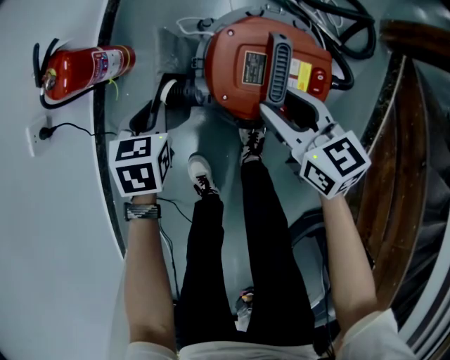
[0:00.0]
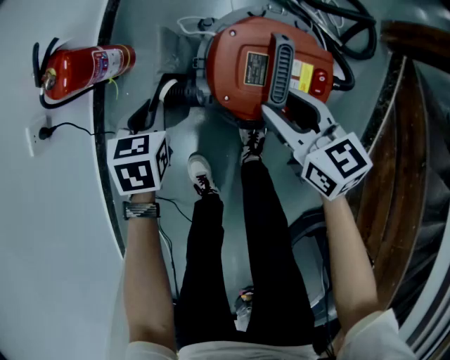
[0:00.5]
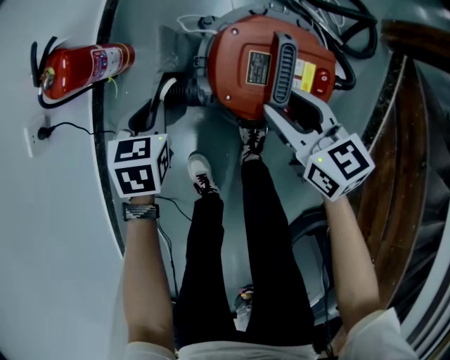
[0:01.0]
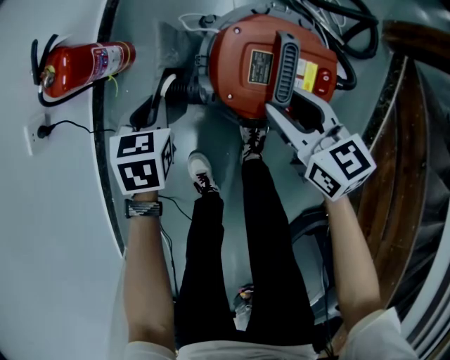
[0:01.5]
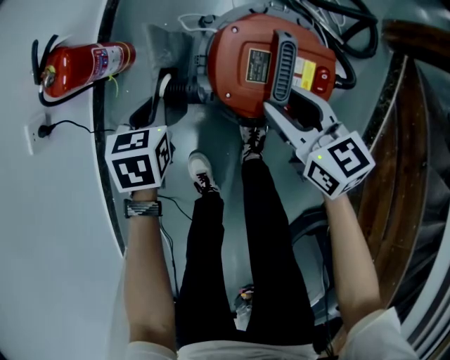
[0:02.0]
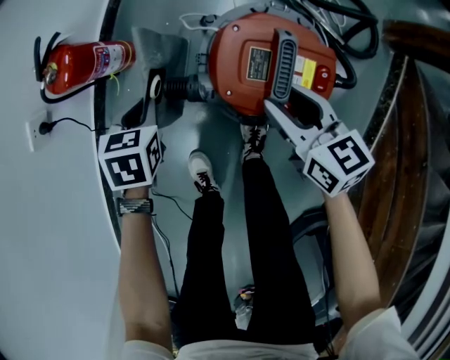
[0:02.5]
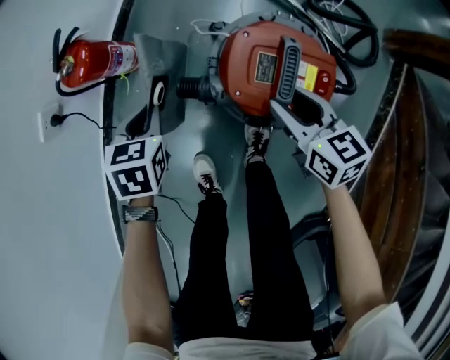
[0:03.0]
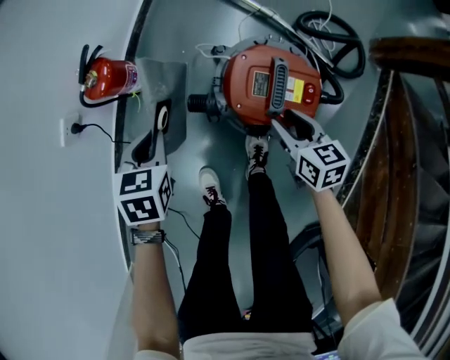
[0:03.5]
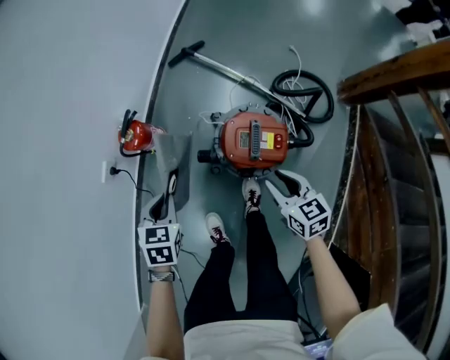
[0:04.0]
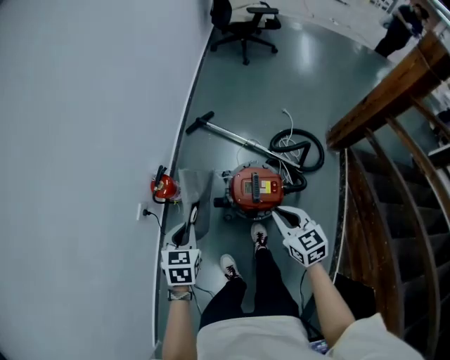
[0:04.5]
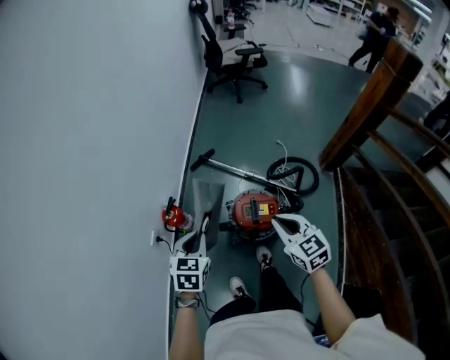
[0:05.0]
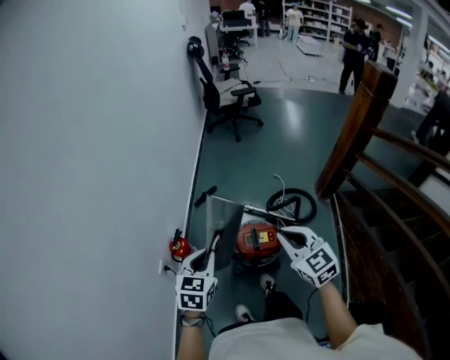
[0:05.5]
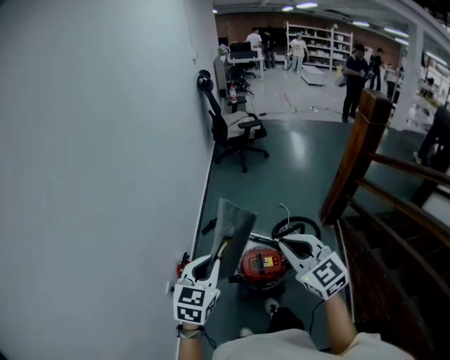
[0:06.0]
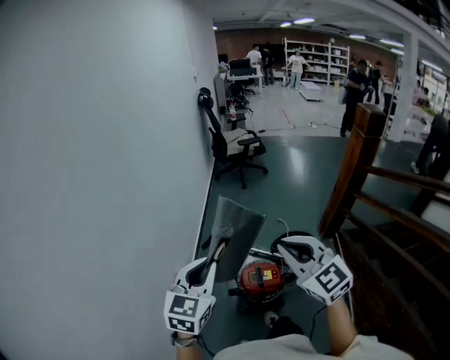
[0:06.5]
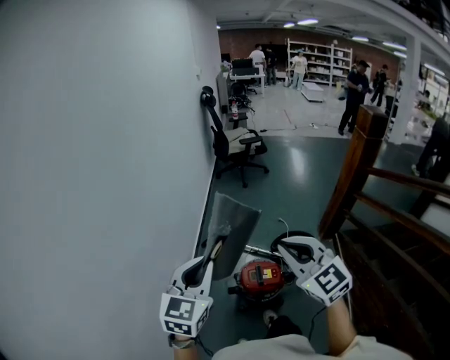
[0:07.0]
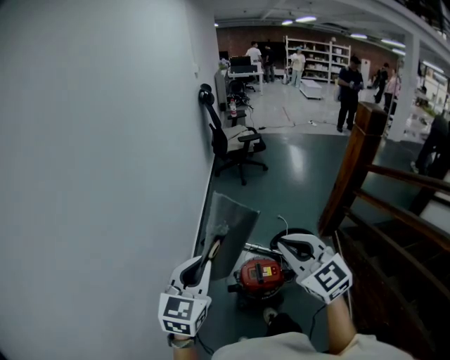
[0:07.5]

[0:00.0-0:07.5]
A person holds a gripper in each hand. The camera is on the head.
0:00.0 to 0:02.0: The two grippers keep their place.
0:02.0 to 0:04.0: The left gripper heads upward, covering approximately 20 cm. Meanwhile the right gripper travels upward and backward by approximately 15 cm.
0:04.0 to 0:05.5: The two grippers go roughly 40 cm upward. The left gripper rotates about 30 degrees, while the right gripper rotates some 30 degrees, and closes up.
0:05.5 to 0:07.5: The two grippers go about 20 cm upward. The left gripper rotates approximately 20 degrees.

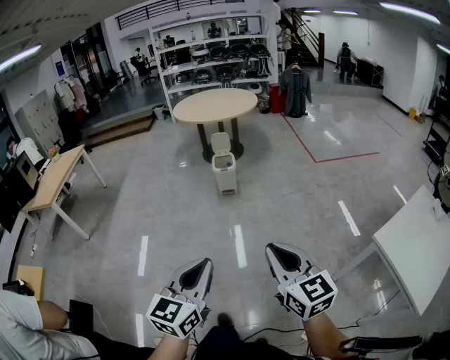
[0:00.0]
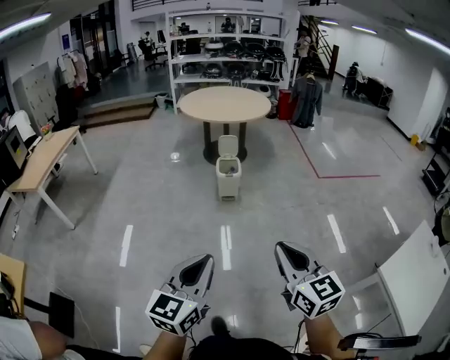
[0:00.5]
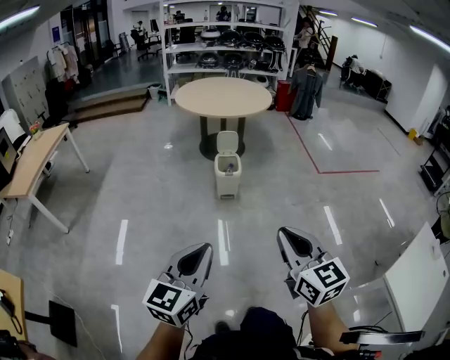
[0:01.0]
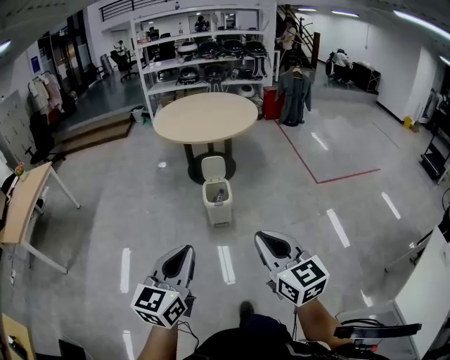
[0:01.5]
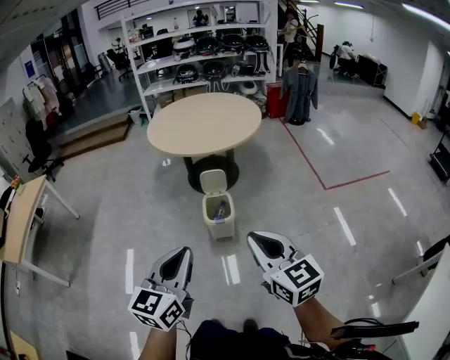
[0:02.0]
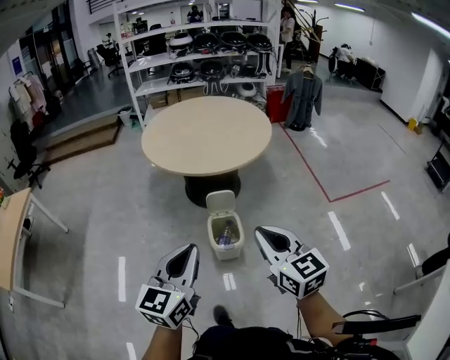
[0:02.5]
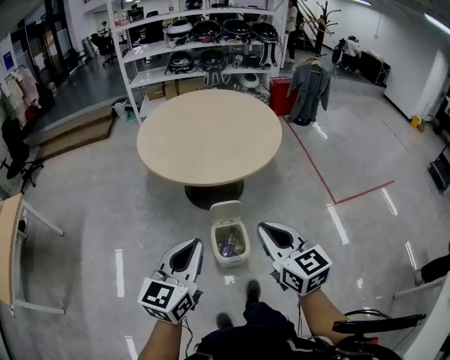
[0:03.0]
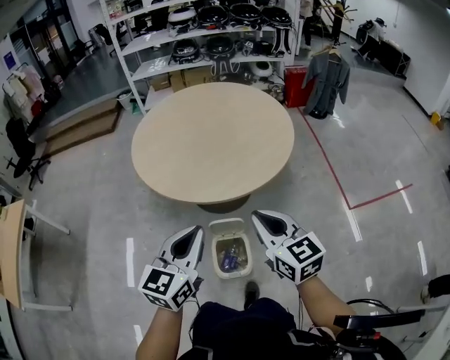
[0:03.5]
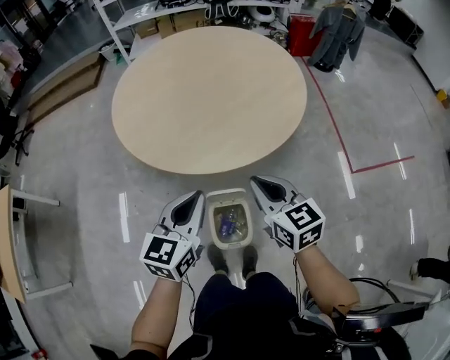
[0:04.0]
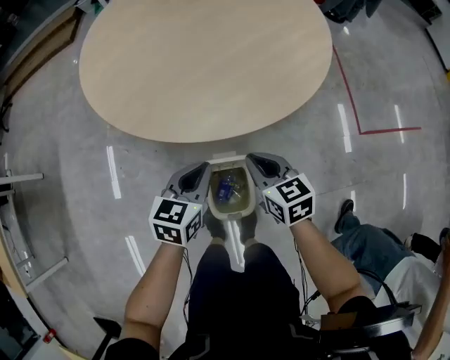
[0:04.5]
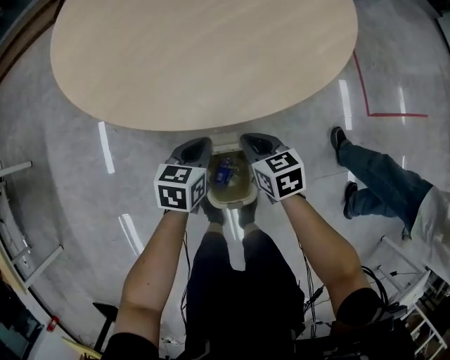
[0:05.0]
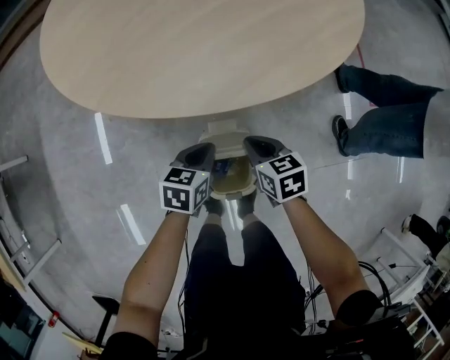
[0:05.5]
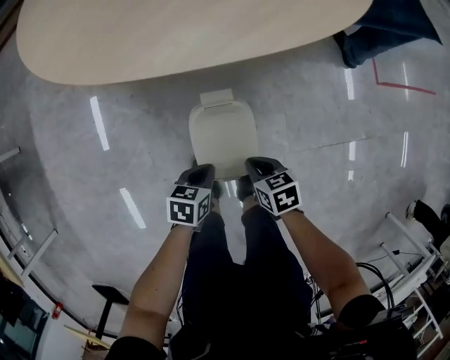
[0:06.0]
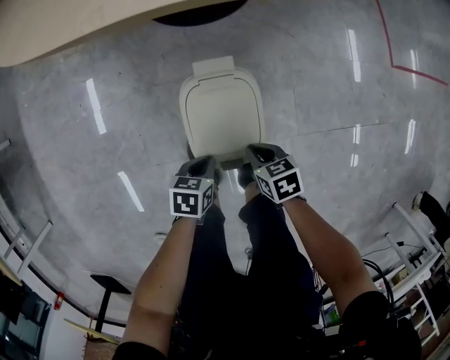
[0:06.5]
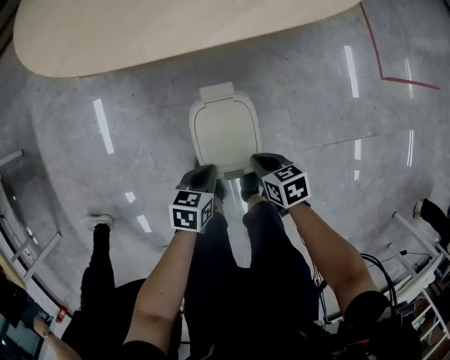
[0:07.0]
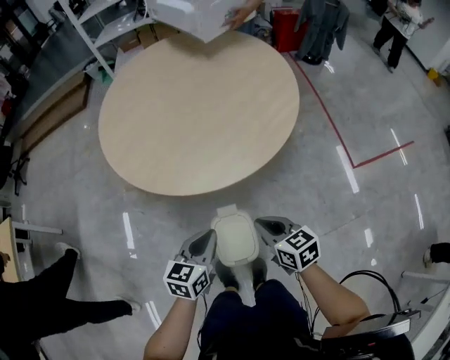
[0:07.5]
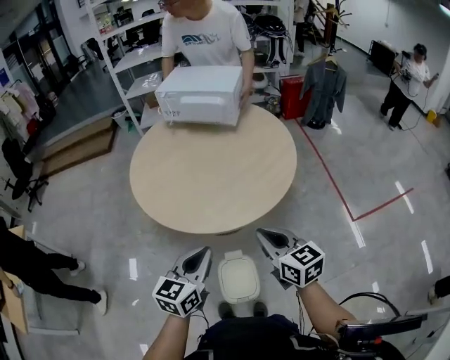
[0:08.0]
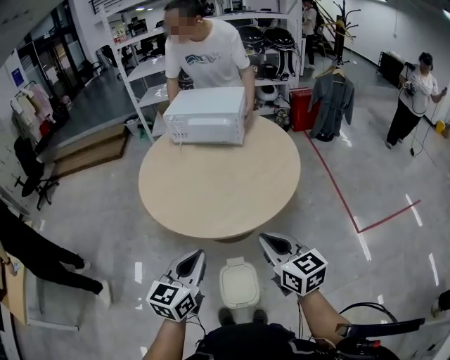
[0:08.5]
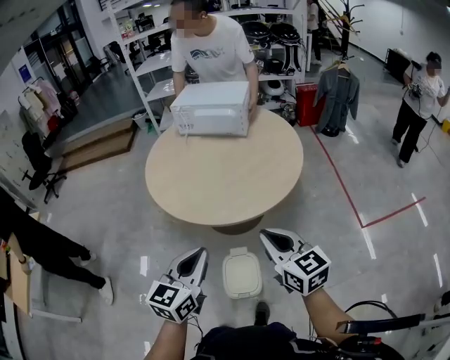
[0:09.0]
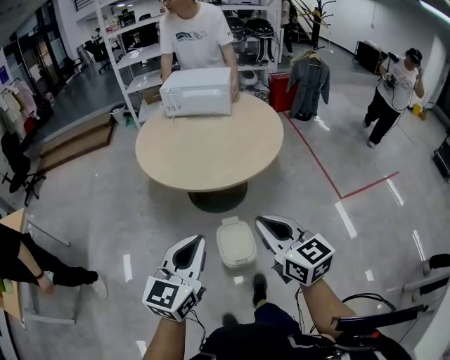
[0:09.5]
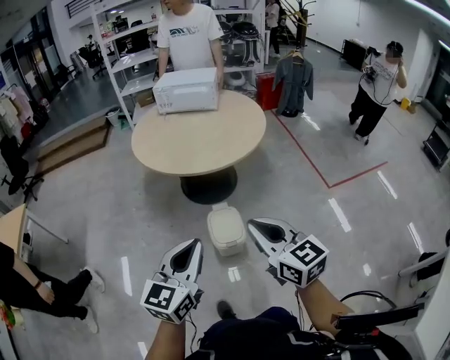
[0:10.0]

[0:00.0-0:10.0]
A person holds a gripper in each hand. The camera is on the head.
0:00.0 to 0:02.0: The pair of grippers is taken forward, some 60 cm.
0:02.0 to 0:04.0: The two grippers travel together, forward, about 60 cm.
0:04.0 to 0:06.0: The two grippers go some 50 cm downward. The left gripper tilts its fingers roughly 40 degrees downward. The right gripper angles its fingers downward, by approximately 40 degrees.
0:06.0 to 0:08.0: Both grippers move upward, about 50 cm. The right gripper points its fingers some 40 degrees further upward. The left gripper angles its fingers upward, by some 40 degrees.
0:08.0 to 0:10.0: Both grippers move backward, some 35 cm.

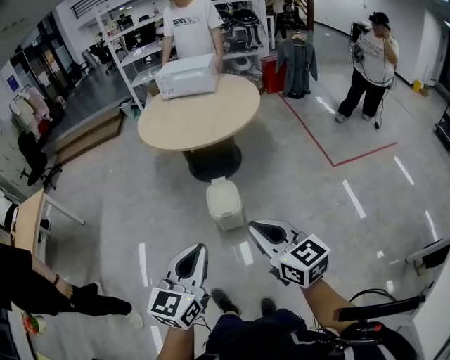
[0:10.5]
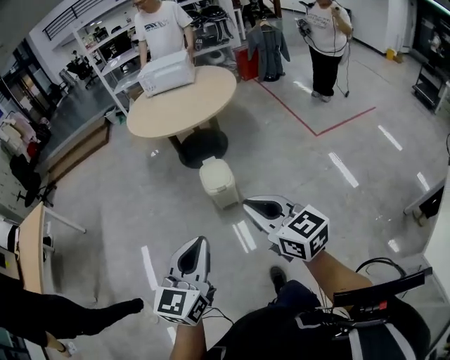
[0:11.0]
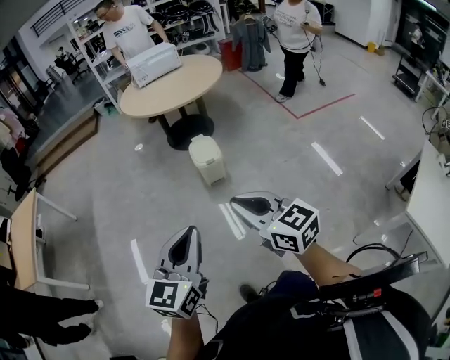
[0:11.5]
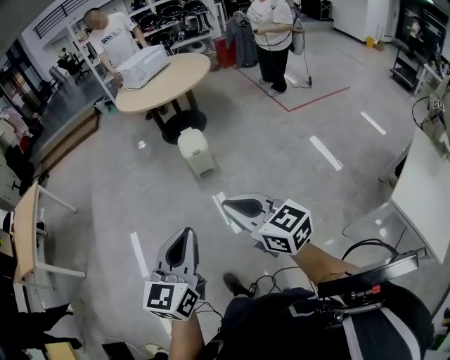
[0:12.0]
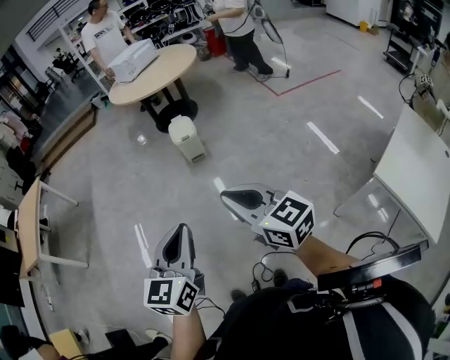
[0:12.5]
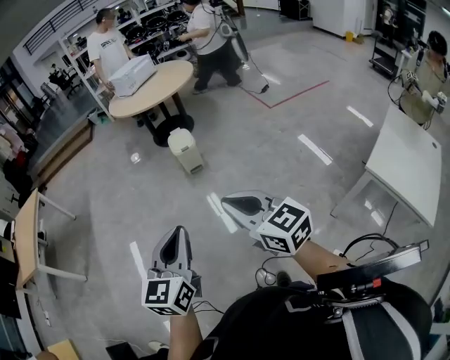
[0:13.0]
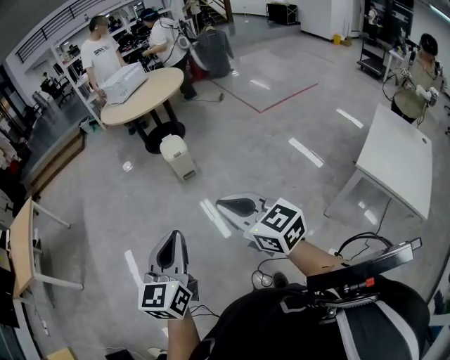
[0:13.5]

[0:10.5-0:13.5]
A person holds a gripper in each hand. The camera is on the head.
0:10.5 to 0:12.0: Both grippers move backward, roughly 40 cm.
0:12.0 to 0:13.5: Both grippers move backward, approximately 15 cm.

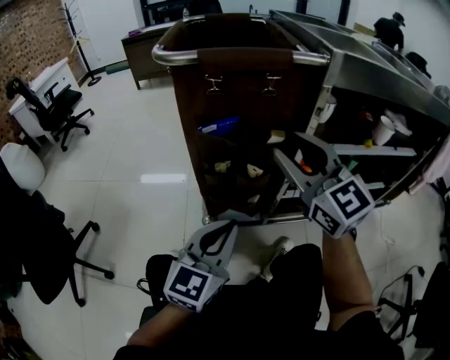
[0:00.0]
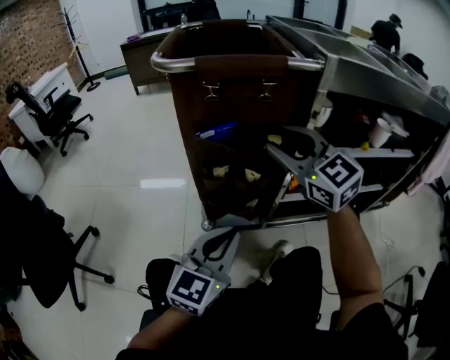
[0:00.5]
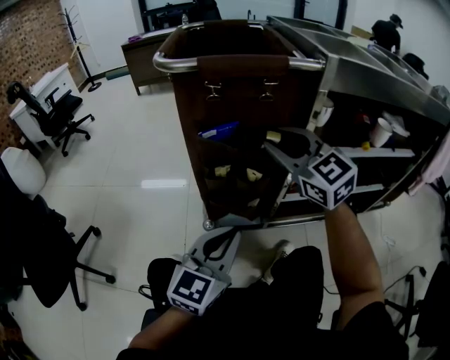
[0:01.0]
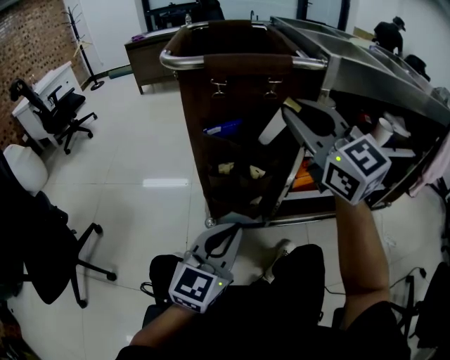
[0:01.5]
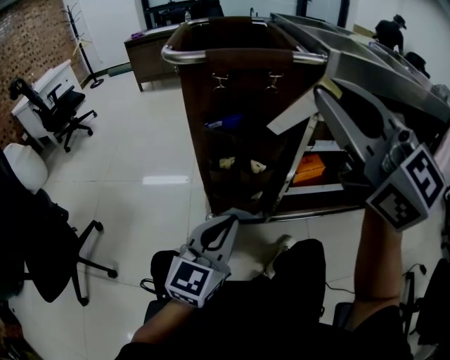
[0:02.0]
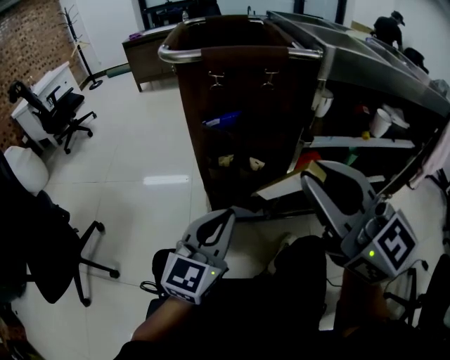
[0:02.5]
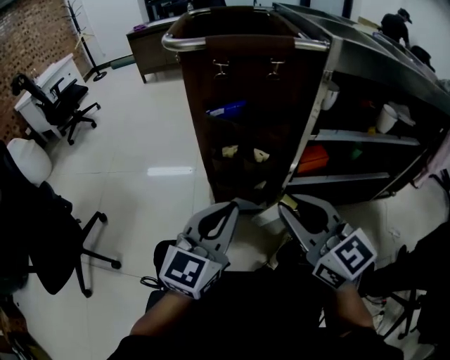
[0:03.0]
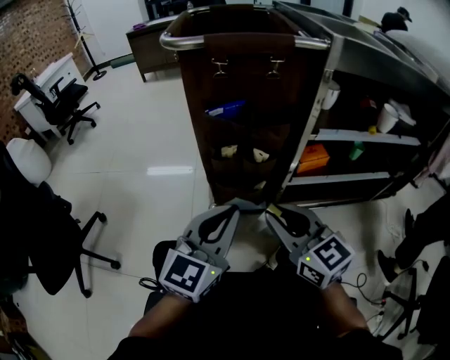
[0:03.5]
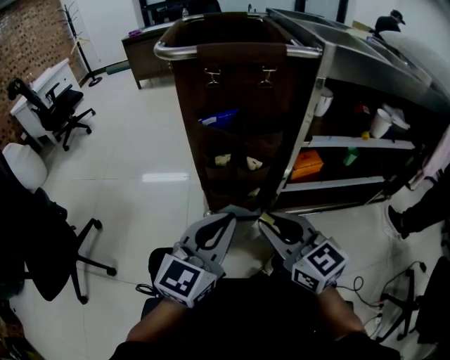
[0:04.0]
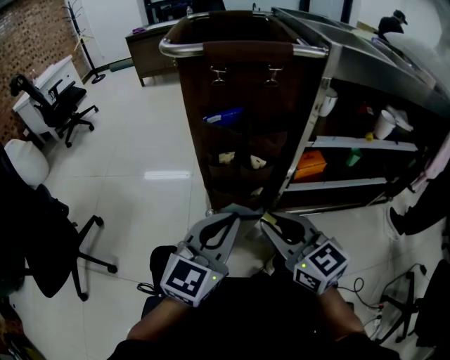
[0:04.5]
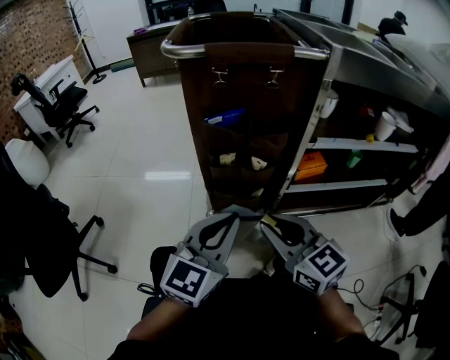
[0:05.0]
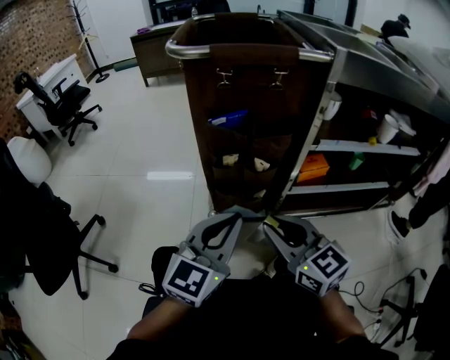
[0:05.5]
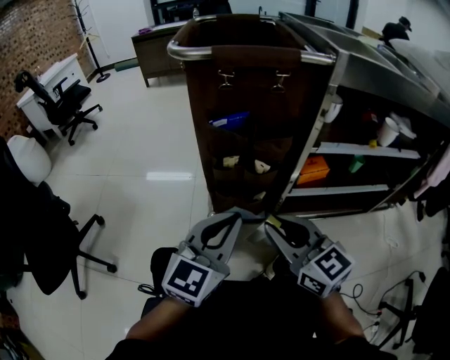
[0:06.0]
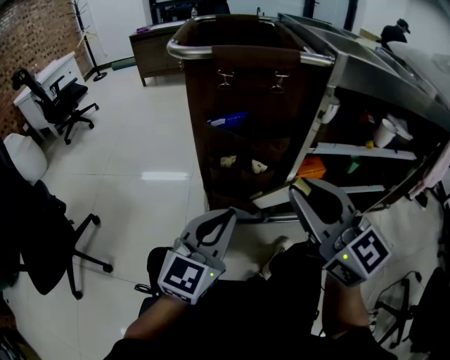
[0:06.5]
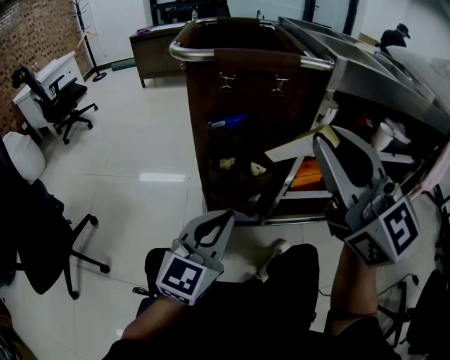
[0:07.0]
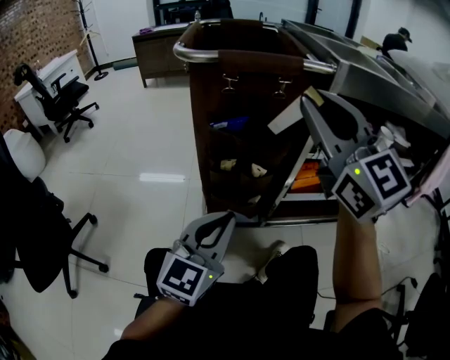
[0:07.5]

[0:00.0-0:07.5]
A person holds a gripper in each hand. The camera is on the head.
0:00.0 to 0:02.0: The right gripper shifts approximately 15 cm upward and backward, and closes its fingers.
0:02.0 to 0:04.0: The right gripper shifts roughly 30 cm downward, and swivels roughly 30 degrees.
0:04.0 to 0:05.5: The two grippers keep their place.
0:05.5 to 0:07.5: The right gripper goes some 30 cm upward and forward, and turns by about 30 degrees.
